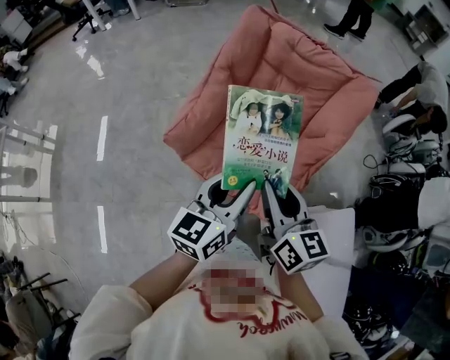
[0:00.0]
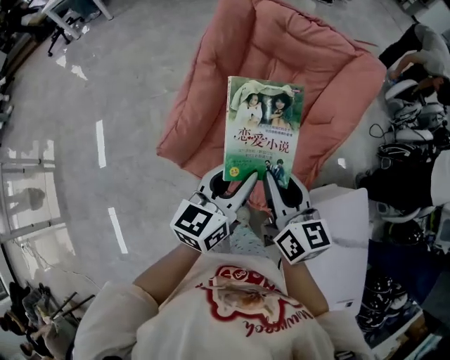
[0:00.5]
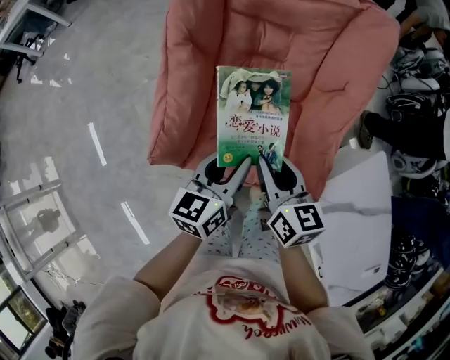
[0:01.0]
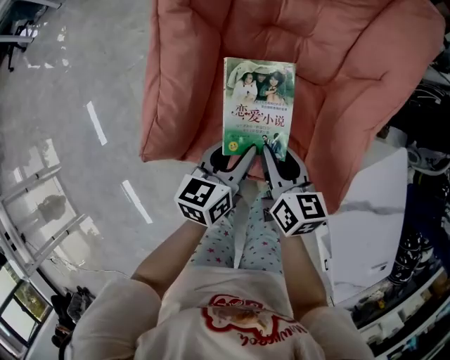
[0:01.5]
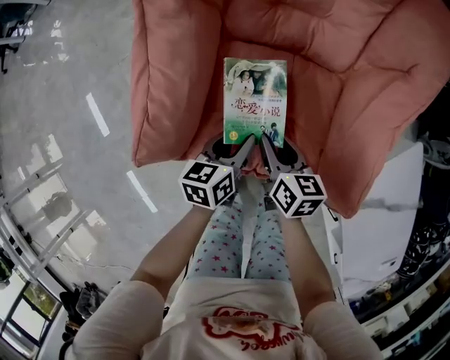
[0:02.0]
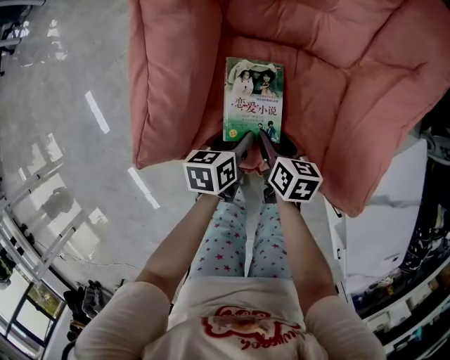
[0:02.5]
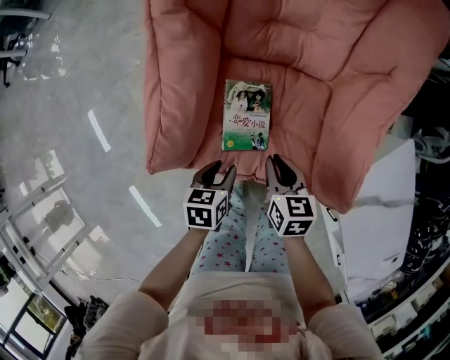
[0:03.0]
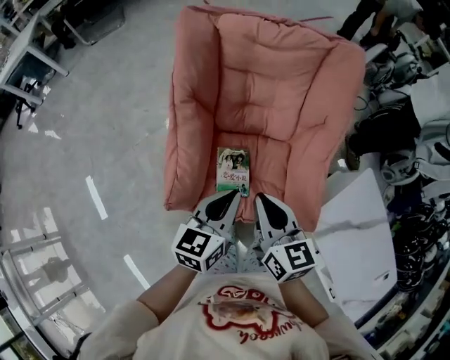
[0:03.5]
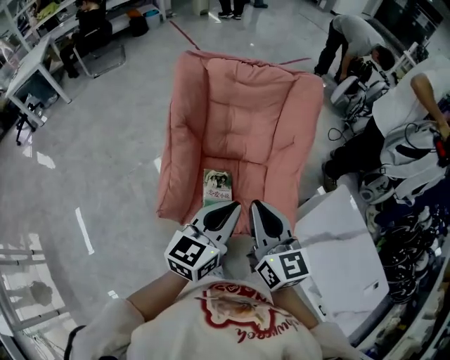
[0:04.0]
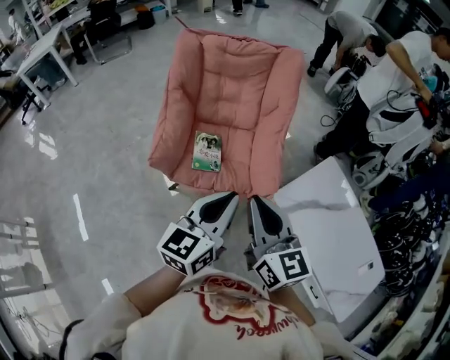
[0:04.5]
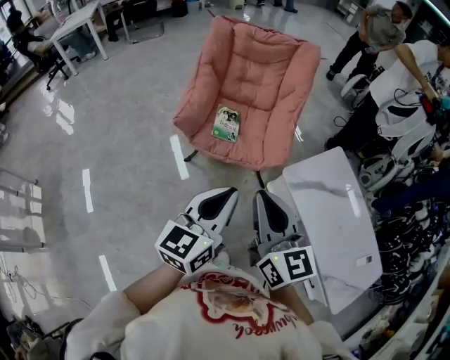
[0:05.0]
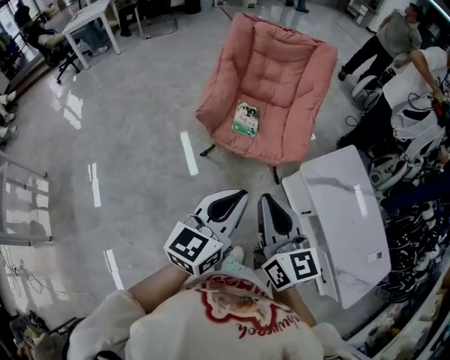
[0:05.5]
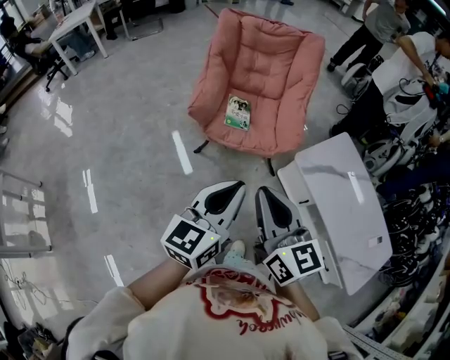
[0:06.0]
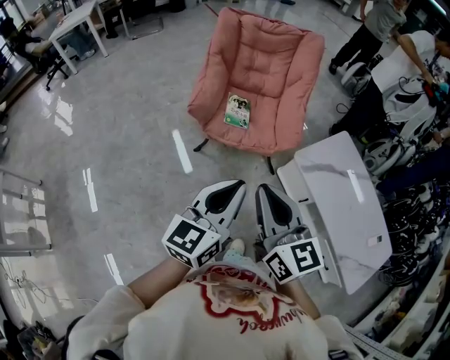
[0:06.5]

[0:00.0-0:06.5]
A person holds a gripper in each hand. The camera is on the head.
0:00.0 to 0:02.0: Both grippers move downward, roughly 40 cm. The left gripper swivels some 40 degrees; the right gripper changes its angle by some 30 degrees.
0:02.0 to 0:04.5: The grippers both shift upward and backward by about 50 cm. The left gripper swivels approximately 40 degrees, and closes up, while the right gripper tilts its fingers roughly 30 degrees upward, and closes its fingers.
0:04.5 to 0:06.5: The two grippers go roughly 25 cm backward.

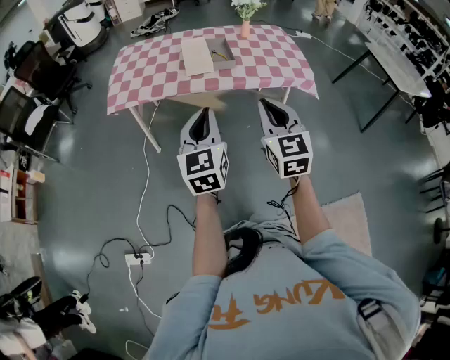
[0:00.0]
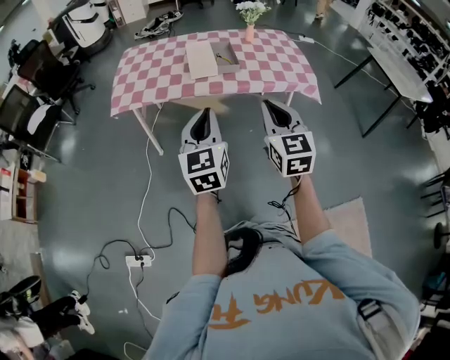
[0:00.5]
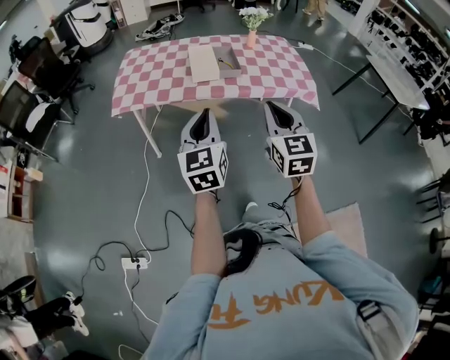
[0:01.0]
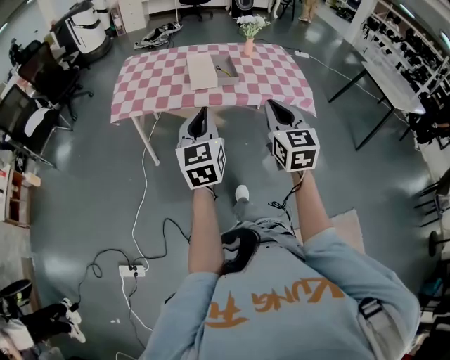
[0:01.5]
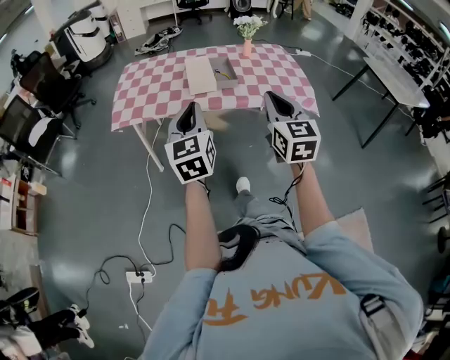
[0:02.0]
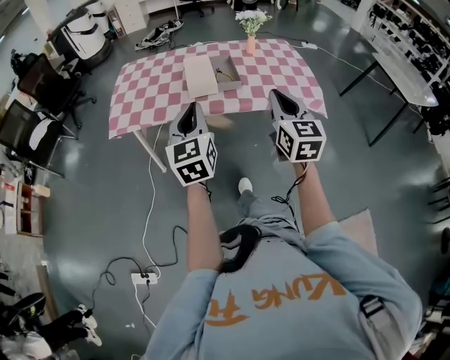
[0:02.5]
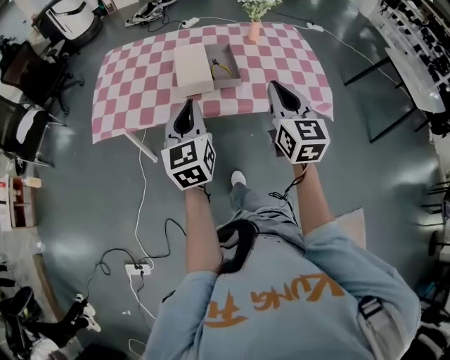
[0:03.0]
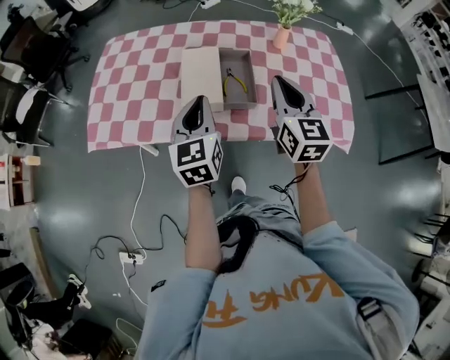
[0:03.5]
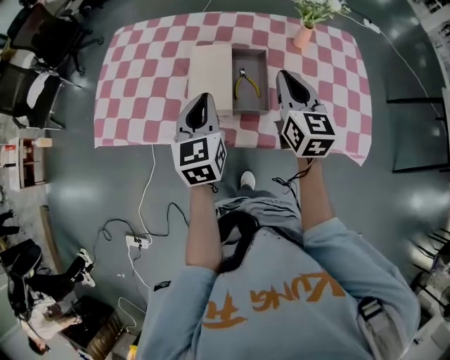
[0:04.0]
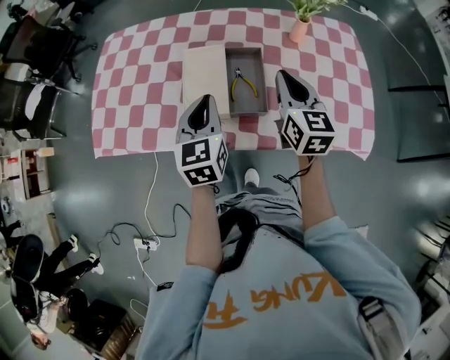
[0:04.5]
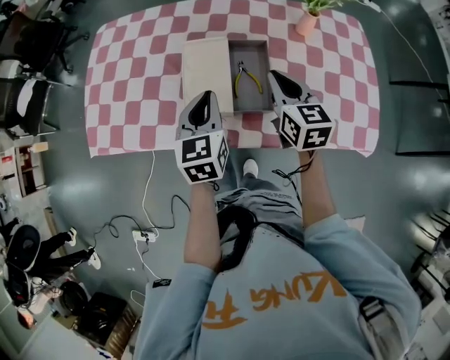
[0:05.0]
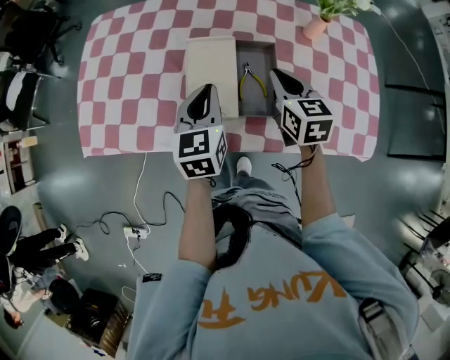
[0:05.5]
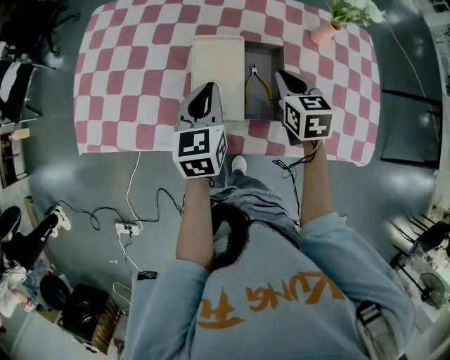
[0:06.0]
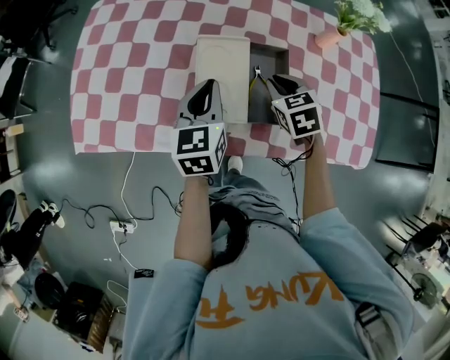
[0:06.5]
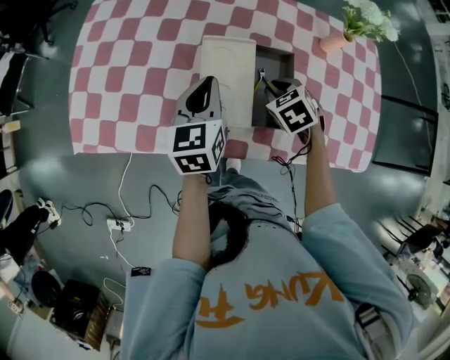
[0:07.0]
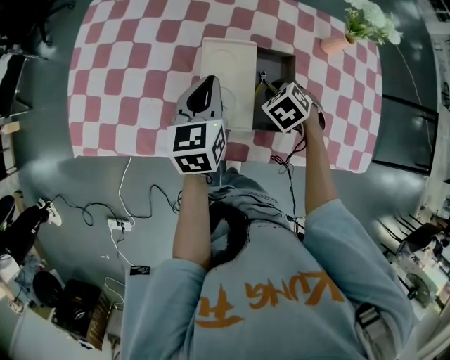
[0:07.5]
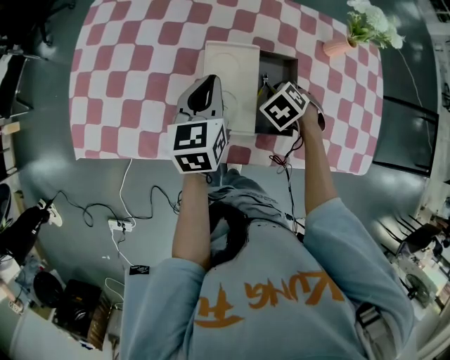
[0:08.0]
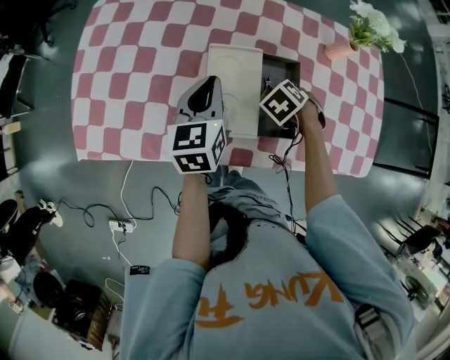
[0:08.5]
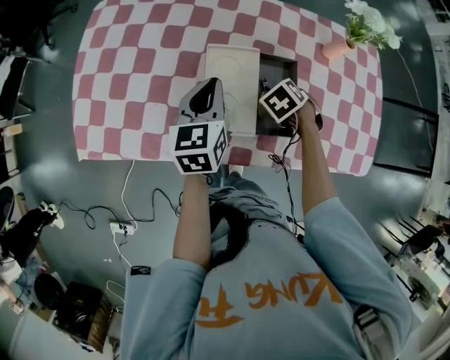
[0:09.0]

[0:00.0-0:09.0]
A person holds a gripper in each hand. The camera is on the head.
0:00.0 to 0:02.0: Both grippers move forward, about 5 cm.
0:02.0 to 0:04.5: The right gripper moves forward and backward over approximately 25 cm, changing direction 2 times. The left gripper swings forward and backward, some 25 cm each way, with 2 reversals.
0:04.5 to 0:07.0: The left gripper moves forward, to the left and downward, about 15 cm. Meanwhile the right gripper travels downward and to the left by approximately 20 cm, and tilts its fingers approximately 50 degrees downward.

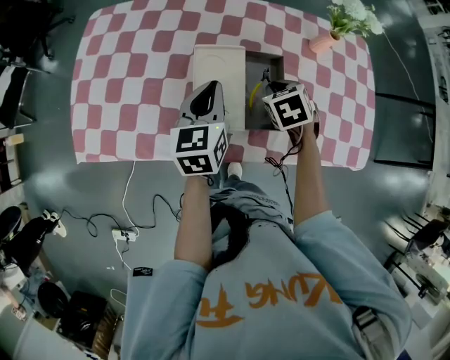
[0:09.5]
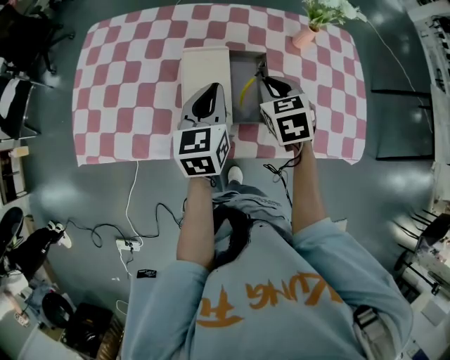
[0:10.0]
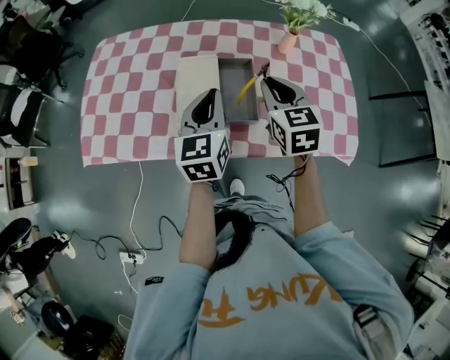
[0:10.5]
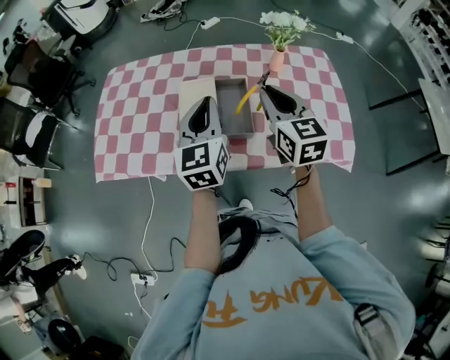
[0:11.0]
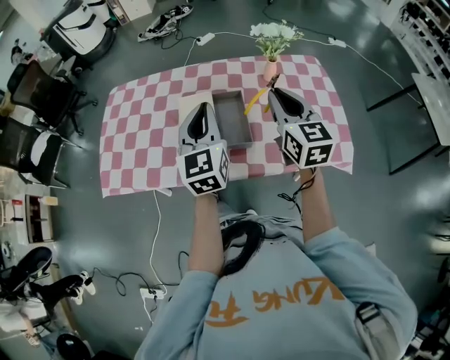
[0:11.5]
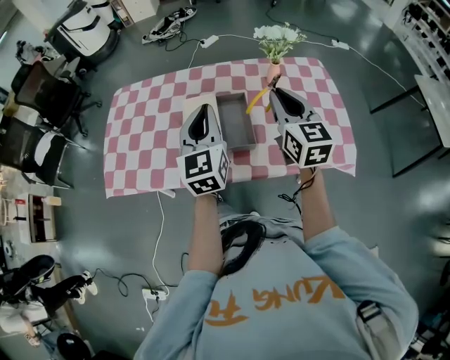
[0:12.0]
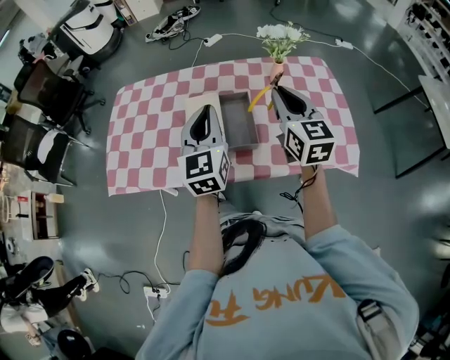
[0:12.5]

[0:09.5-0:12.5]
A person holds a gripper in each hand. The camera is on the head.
0:09.5 to 0:11.0: The left gripper travels upward, backward and to the right by about 20 cm, and changes its angle by approximately 20 degrees, while the right gripper heads upward and backward, covering roughly 25 cm, and angles its fingers upward, by approximately 50 degrees.
0:11.0 to 0:12.5: There are only small adjustments of the grippers.

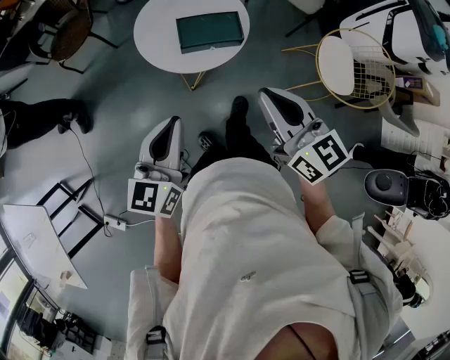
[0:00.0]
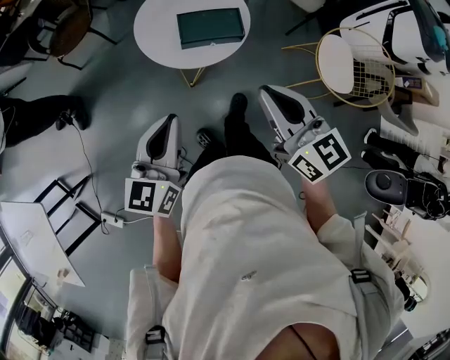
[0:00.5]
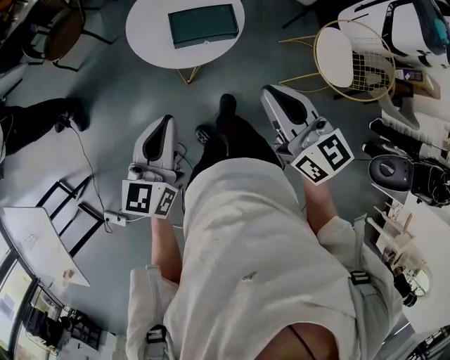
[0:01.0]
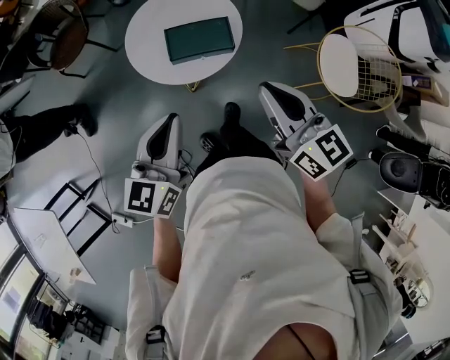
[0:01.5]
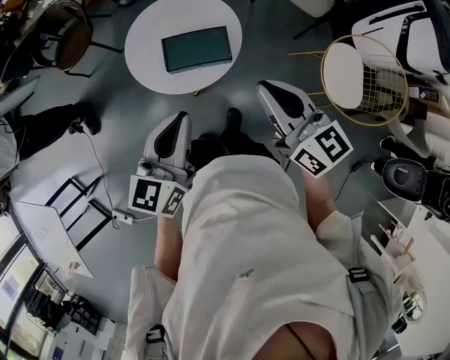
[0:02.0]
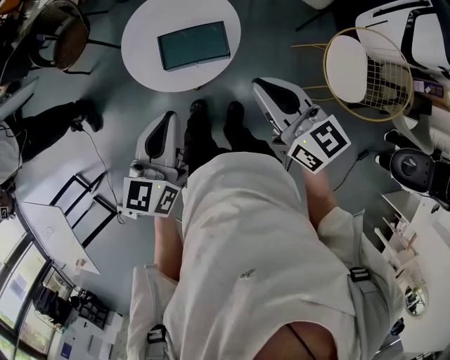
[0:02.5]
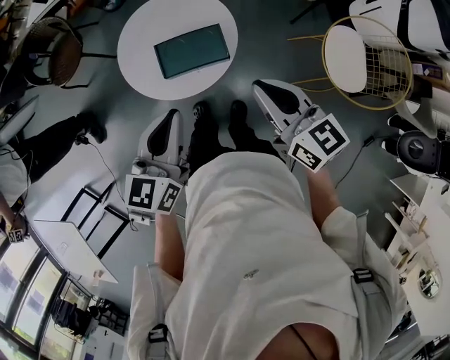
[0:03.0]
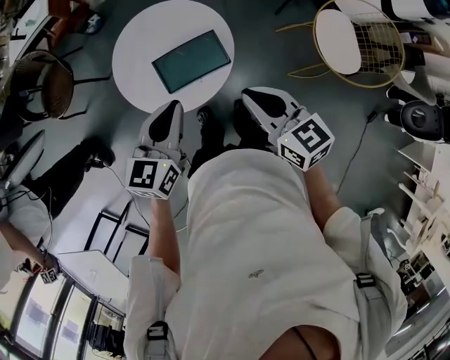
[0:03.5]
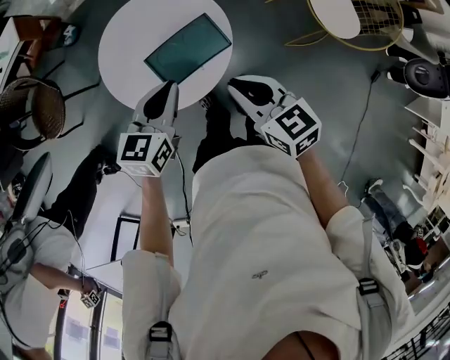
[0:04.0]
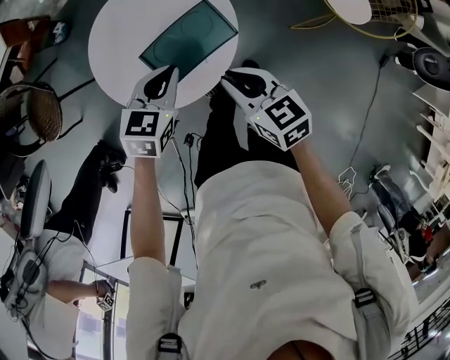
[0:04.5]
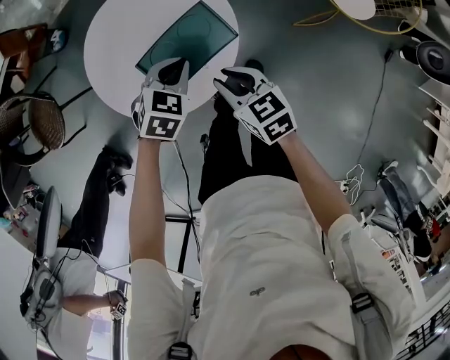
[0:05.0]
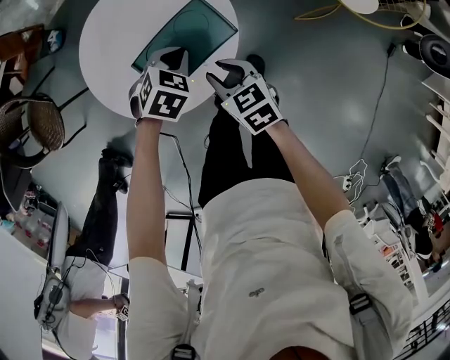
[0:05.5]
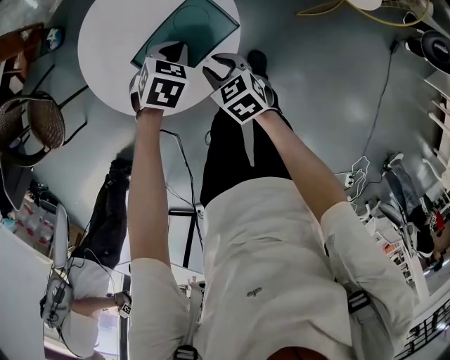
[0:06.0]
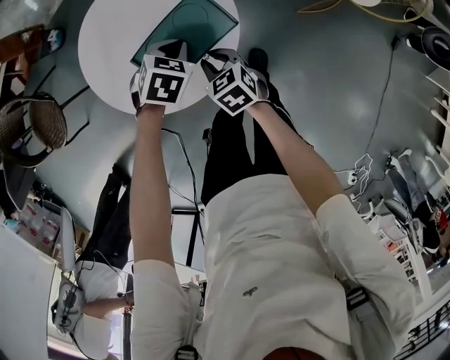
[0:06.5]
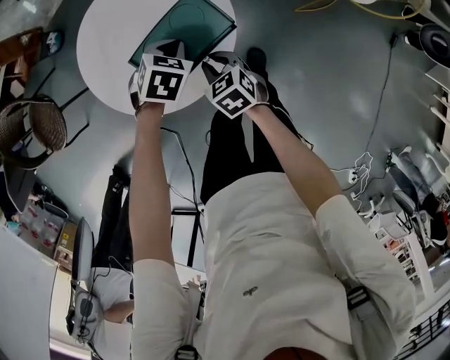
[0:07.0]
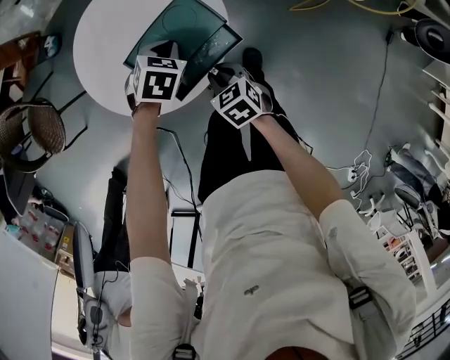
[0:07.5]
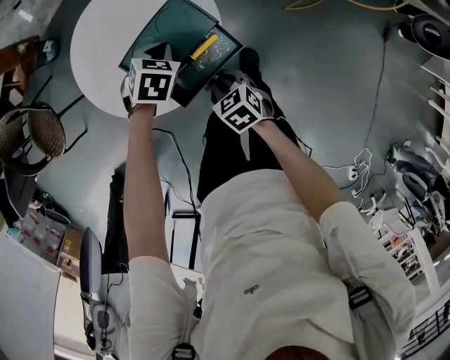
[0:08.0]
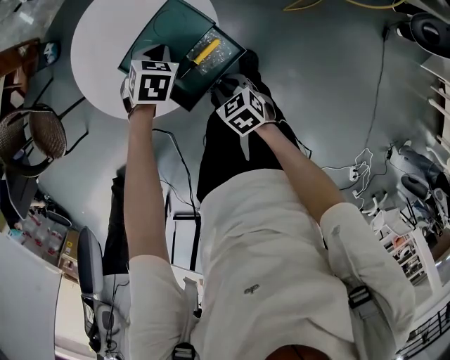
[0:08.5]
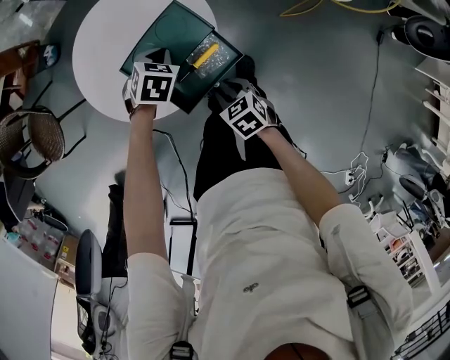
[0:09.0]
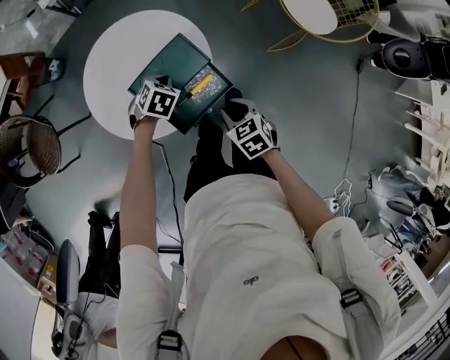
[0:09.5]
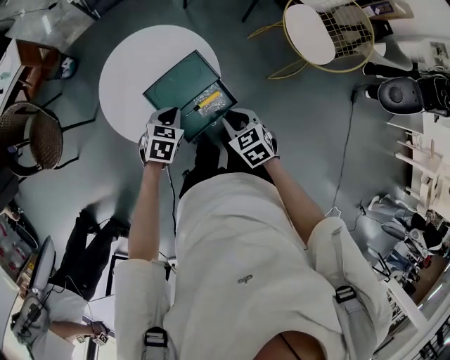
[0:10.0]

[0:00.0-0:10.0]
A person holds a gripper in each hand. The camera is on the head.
0:00.0 to 0:02.0: The right gripper shifts about 15 cm forward and to the right, while the left gripper heads to the right and forward, covering approximately 15 cm.
0:02.0 to 0:04.0: The right gripper heads downward, covering roughly 15 cm, and changes its angle by about 30 degrees. The left gripper ends up some 25 cm from where it was, and swivels about 30 degrees.
0:04.0 to 0:06.0: The two grippers go roughly 20 cm downward. The left gripper tilts its fingers approximately 40 degrees downward. Meanwhile the right gripper turns by about 20 degrees, and opens up.
0:06.0 to 0:08.0: The right gripper moves backward, some 5 cm.
0:08.0 to 0:10.0: The left gripper is displaced backward and upward by roughly 10 cm. The right gripper heads upward, covering about 15 cm.
